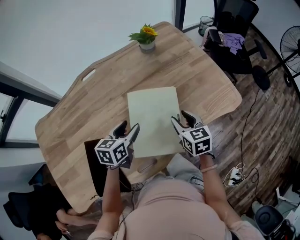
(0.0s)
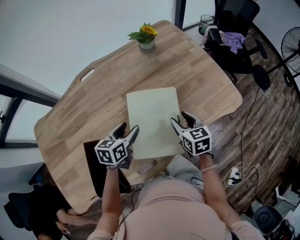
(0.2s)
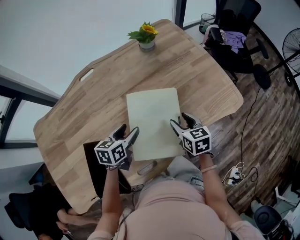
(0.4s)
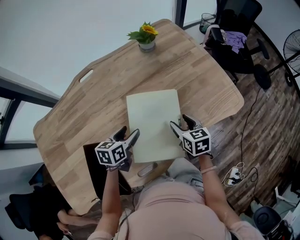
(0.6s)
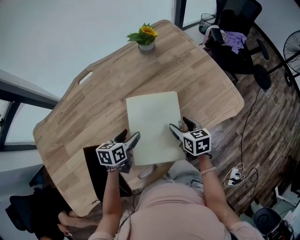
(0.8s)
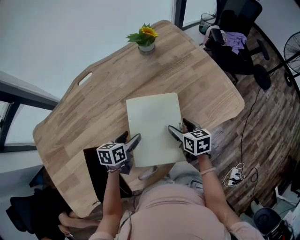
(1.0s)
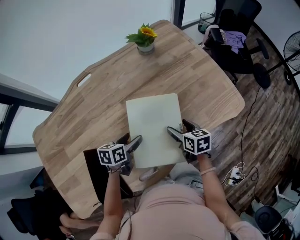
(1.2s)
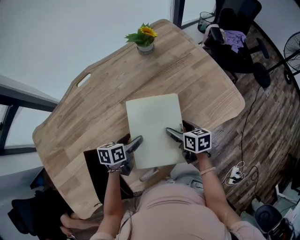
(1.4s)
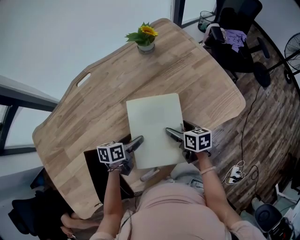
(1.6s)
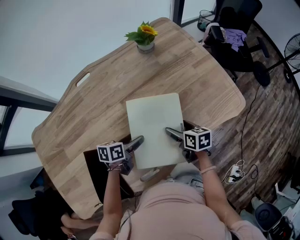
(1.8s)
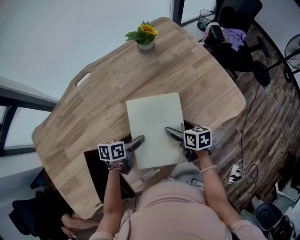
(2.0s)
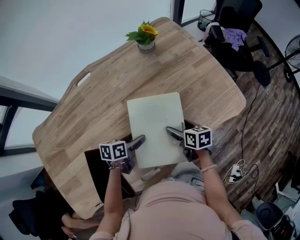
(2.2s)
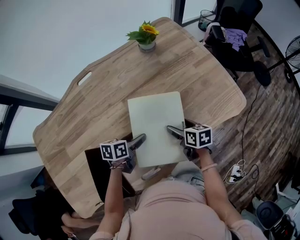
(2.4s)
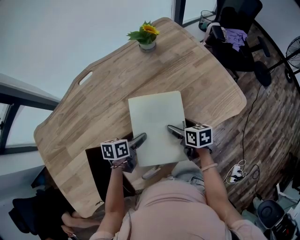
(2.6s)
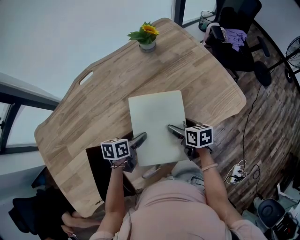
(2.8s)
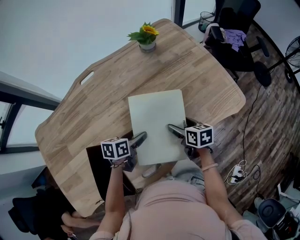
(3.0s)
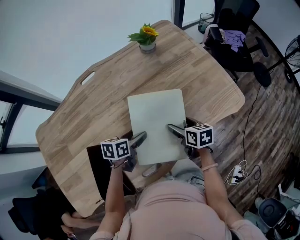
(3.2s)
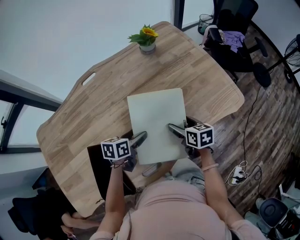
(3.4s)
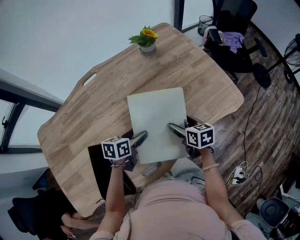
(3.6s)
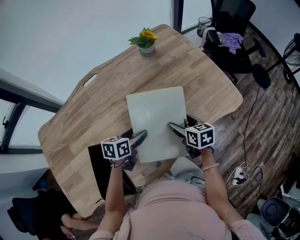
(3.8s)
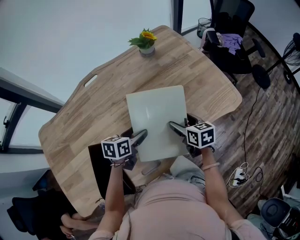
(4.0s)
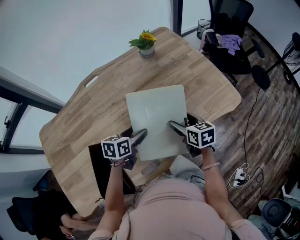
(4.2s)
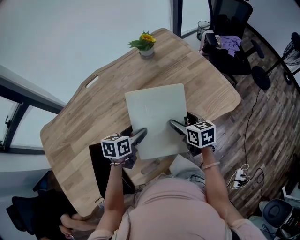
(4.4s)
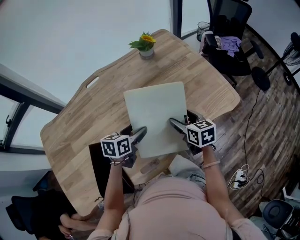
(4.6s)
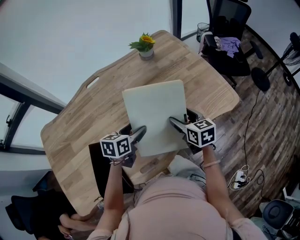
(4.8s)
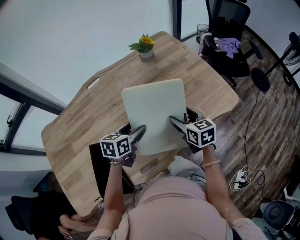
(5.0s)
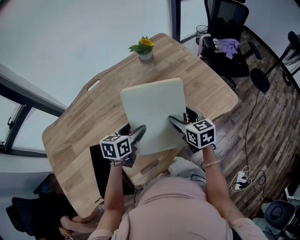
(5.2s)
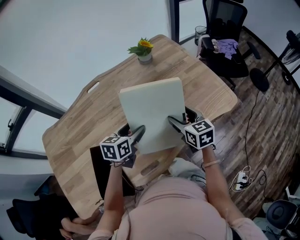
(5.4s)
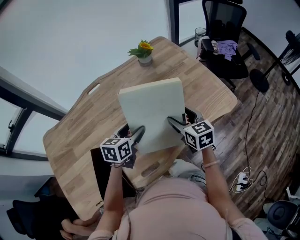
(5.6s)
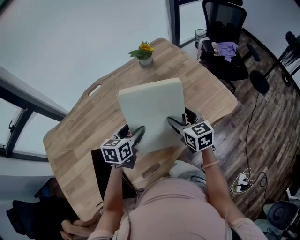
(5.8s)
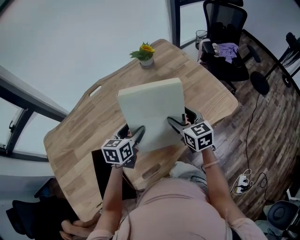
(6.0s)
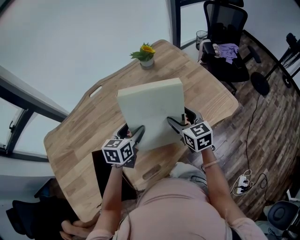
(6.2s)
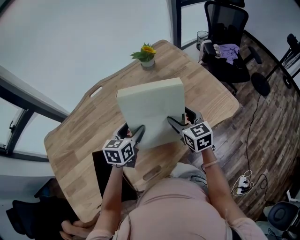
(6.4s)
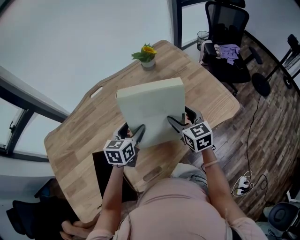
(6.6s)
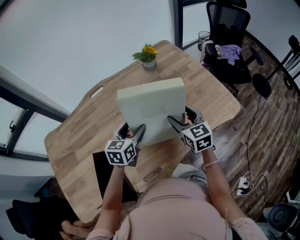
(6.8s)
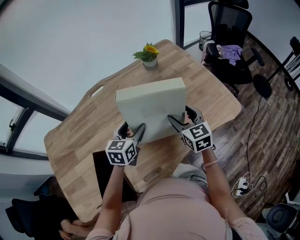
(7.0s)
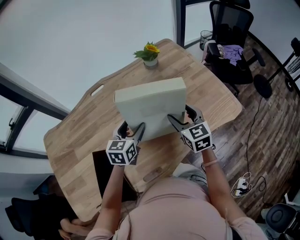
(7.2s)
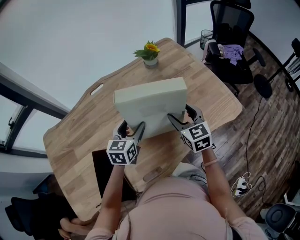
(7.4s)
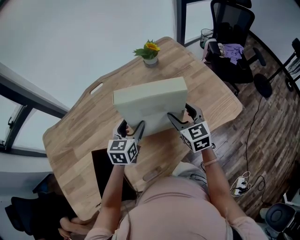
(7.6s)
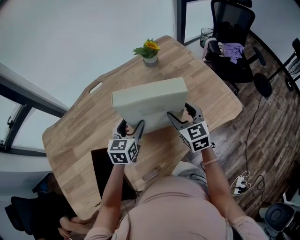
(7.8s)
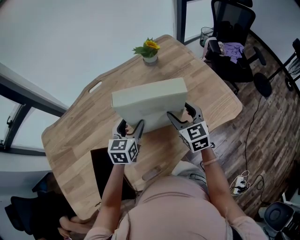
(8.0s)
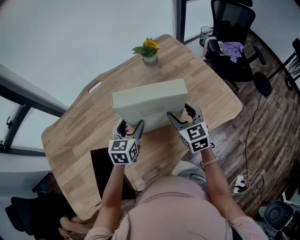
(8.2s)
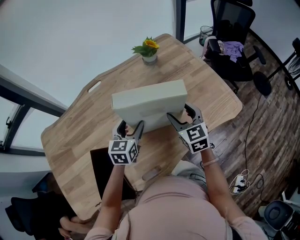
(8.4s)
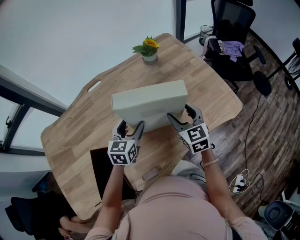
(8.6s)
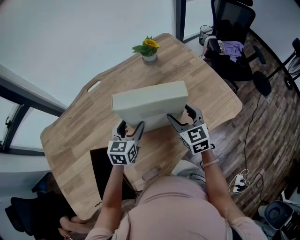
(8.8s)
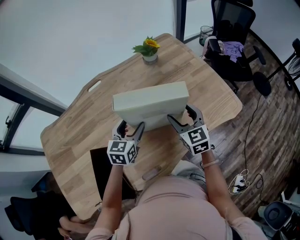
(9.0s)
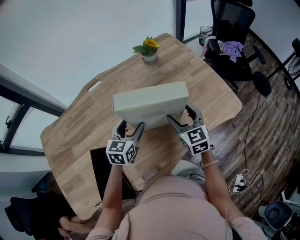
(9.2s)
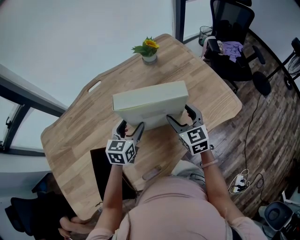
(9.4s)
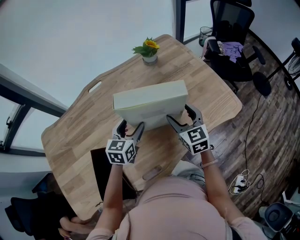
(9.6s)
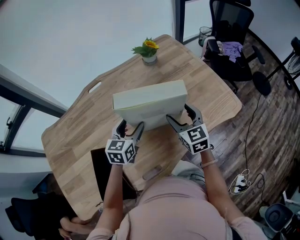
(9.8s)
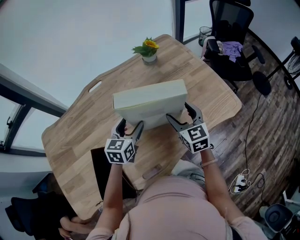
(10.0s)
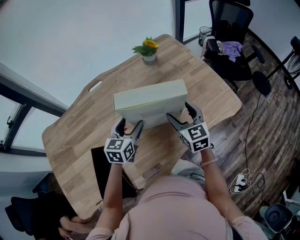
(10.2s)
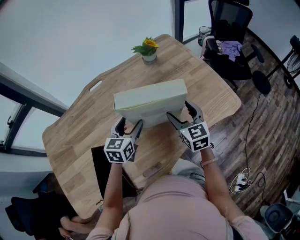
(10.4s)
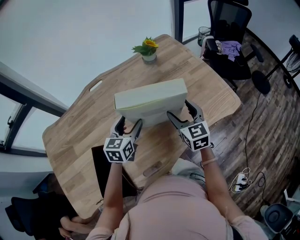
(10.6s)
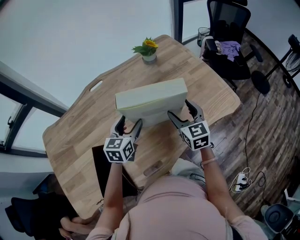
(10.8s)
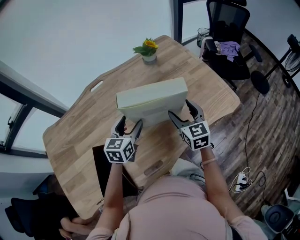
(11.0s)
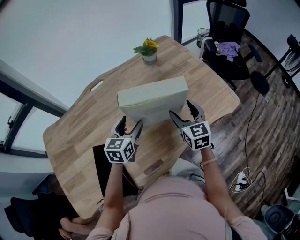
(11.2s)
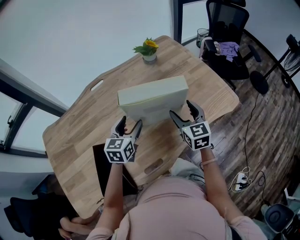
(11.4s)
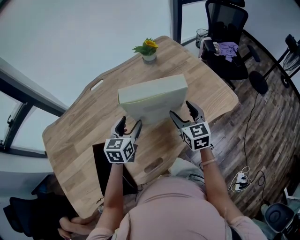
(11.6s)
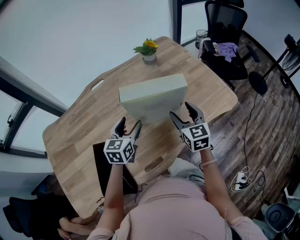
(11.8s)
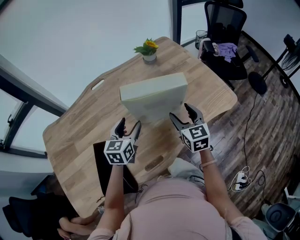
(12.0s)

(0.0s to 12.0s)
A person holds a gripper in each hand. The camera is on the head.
0.0s - 1.6s: Both grippers move downward, approximately 10 cm. The right gripper turns by some 30 degrees, and opens its fingers, while the left gripper changes its angle by roughly 30 degrees.
1.6s - 3.0s: The grippers stay close to where they were, moving slightly.
3.0s - 4.4s: The grippers both shift upward by roughly 5 cm.
4.4s - 6.0s: Both grippers travel together upward, roughly 5 cm.
6.0s - 10.4s: There are only small adjustments of the grippers.
10.4s - 12.0s: The left gripper shifts by about 5 cm.

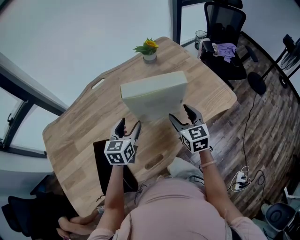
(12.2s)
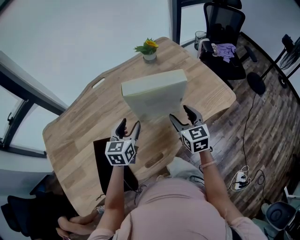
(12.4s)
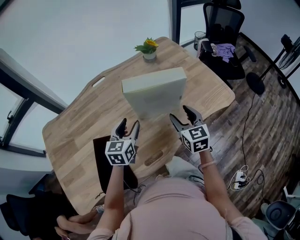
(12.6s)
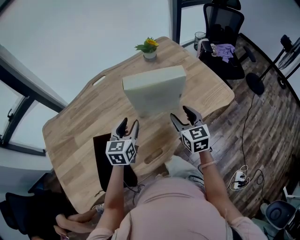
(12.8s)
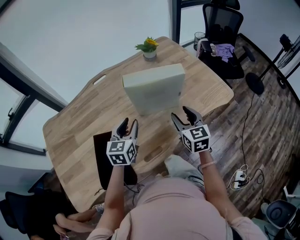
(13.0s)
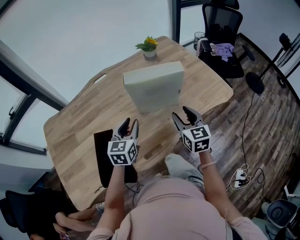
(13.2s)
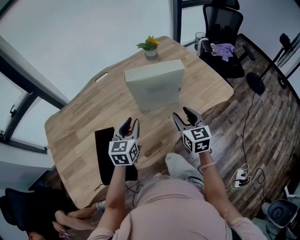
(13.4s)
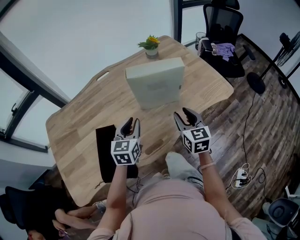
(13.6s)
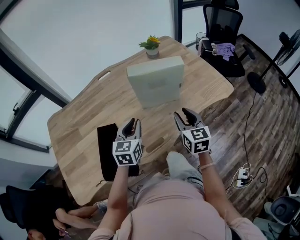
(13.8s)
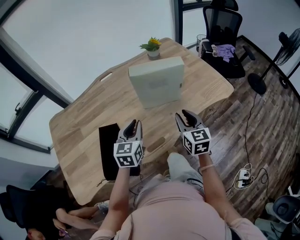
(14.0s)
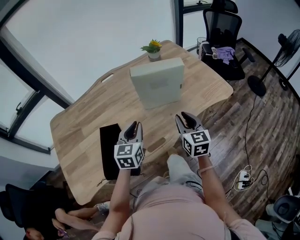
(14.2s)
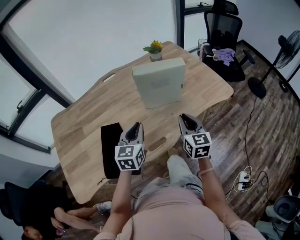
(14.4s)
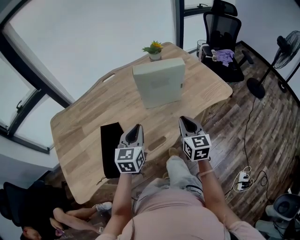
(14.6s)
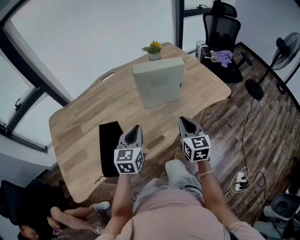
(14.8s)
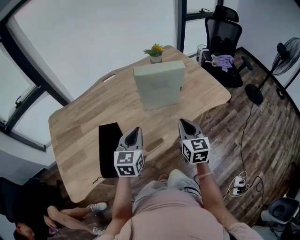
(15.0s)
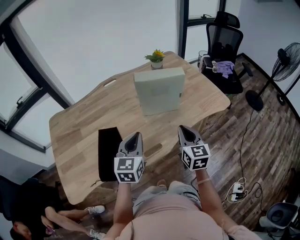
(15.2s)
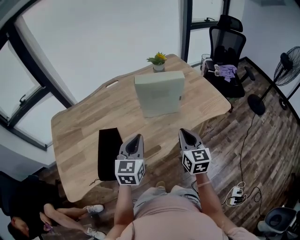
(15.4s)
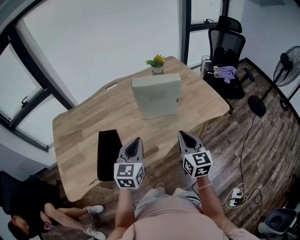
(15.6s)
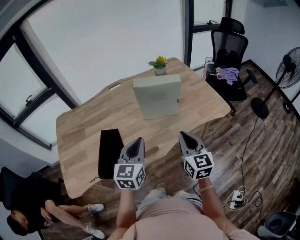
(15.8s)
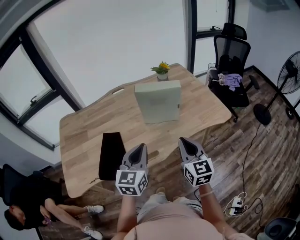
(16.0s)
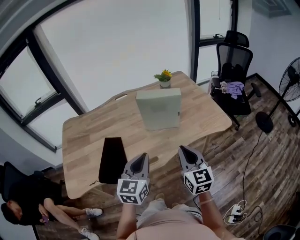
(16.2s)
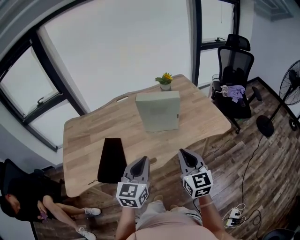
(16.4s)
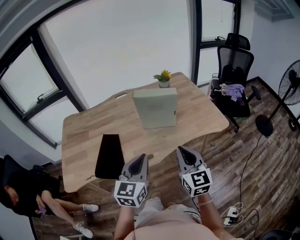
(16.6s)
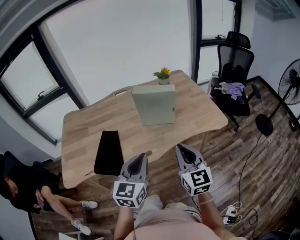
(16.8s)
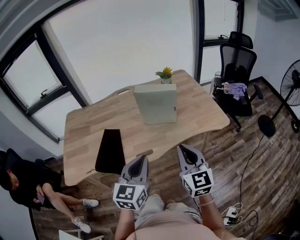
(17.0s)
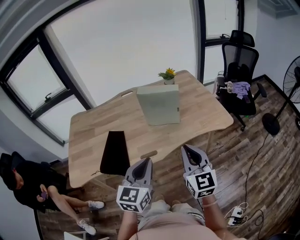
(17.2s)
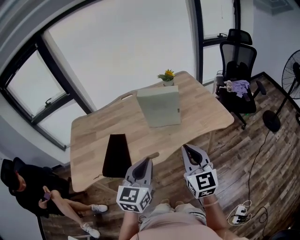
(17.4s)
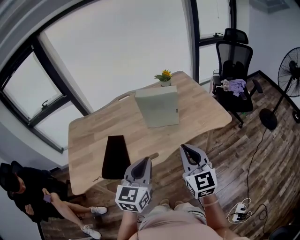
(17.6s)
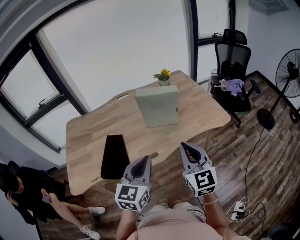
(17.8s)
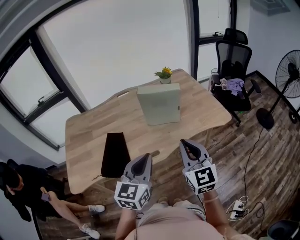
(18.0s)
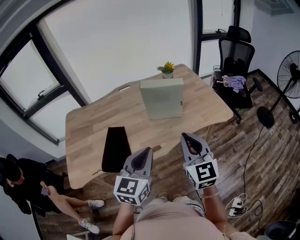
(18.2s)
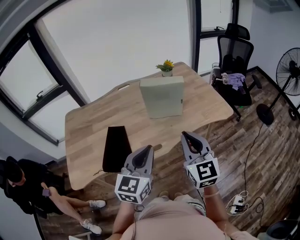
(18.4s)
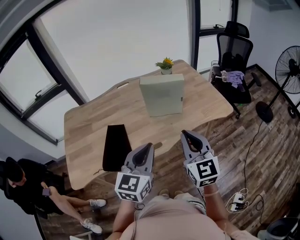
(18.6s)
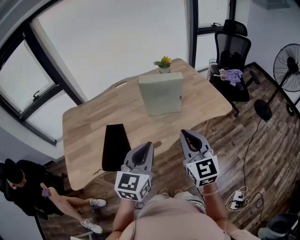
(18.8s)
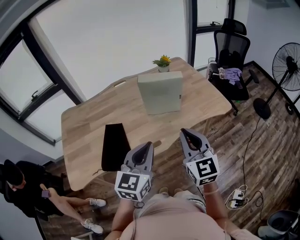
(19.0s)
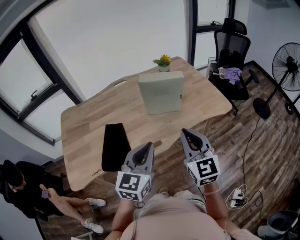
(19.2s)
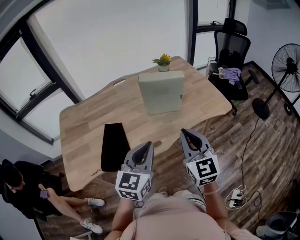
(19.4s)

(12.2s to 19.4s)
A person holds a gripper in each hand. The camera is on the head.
12.2s - 13.6s: Both grippers move backward, approximately 10 cm. The left gripper closes up.
13.6s - 15.0s: Both grippers travel together backward, about 10 cm. The right gripper closes.
15.0s - 16.6s: The left gripper is displaced backward, to the right and upward by some 20 cm; the right gripper shifts roughly 15 cm upward, backward and to the right.
16.6s - 18.0s: The right gripper shifts by roughly 5 cm.
18.0s - 19.4s: The grippers stay close to where they were, moving slightly.

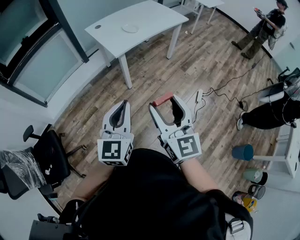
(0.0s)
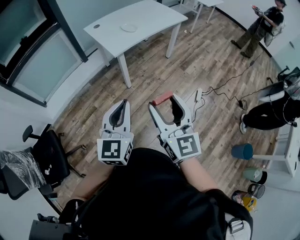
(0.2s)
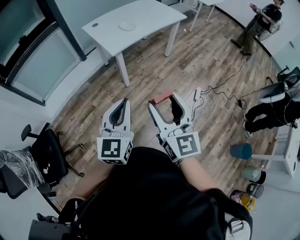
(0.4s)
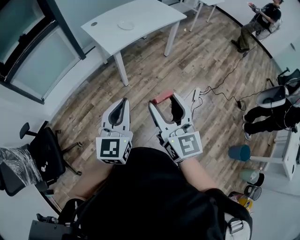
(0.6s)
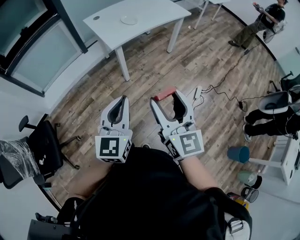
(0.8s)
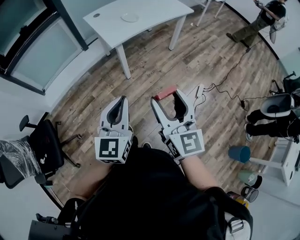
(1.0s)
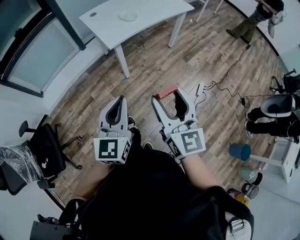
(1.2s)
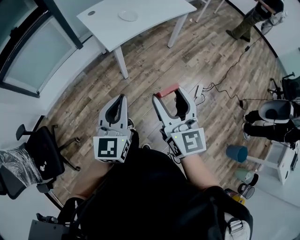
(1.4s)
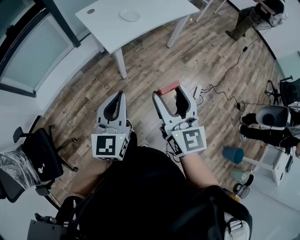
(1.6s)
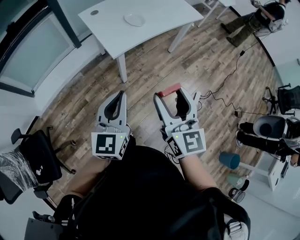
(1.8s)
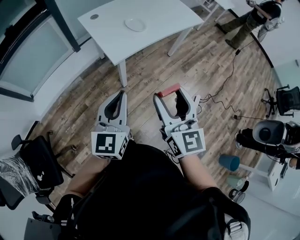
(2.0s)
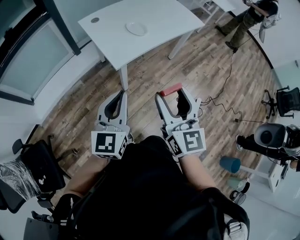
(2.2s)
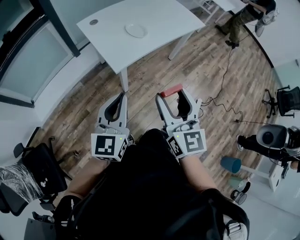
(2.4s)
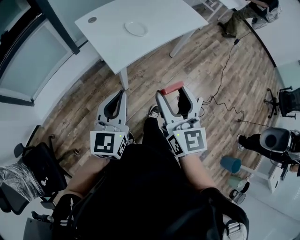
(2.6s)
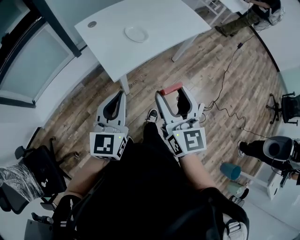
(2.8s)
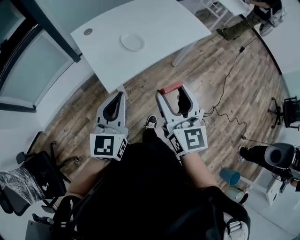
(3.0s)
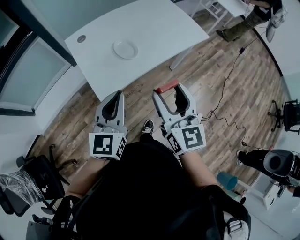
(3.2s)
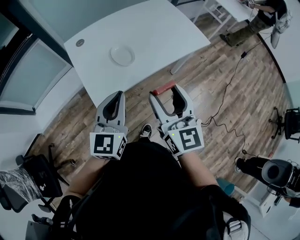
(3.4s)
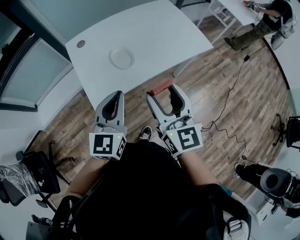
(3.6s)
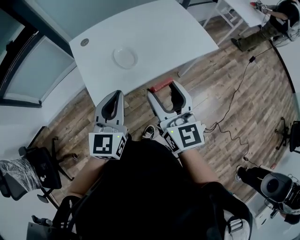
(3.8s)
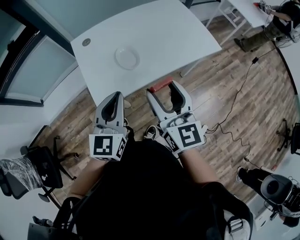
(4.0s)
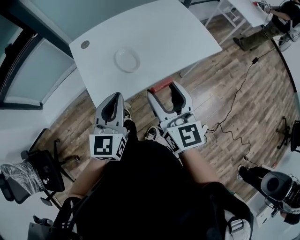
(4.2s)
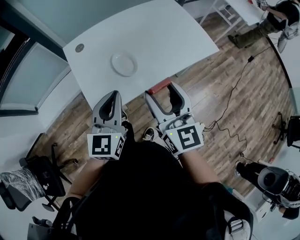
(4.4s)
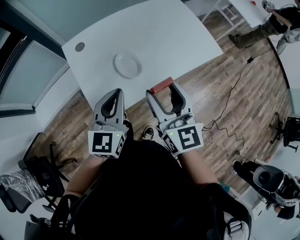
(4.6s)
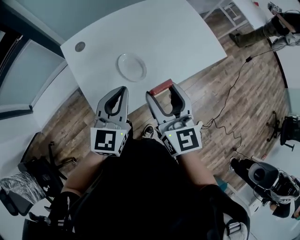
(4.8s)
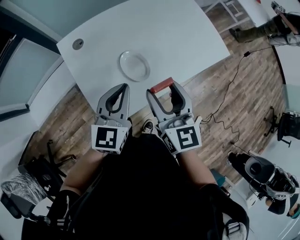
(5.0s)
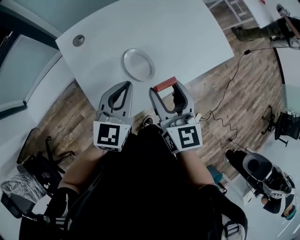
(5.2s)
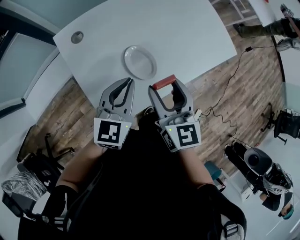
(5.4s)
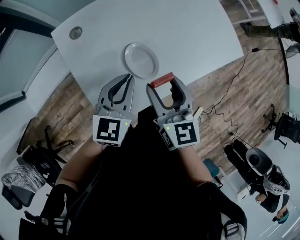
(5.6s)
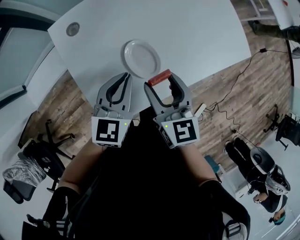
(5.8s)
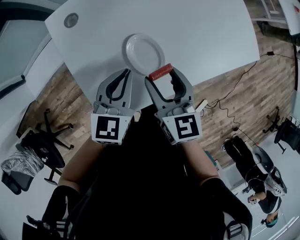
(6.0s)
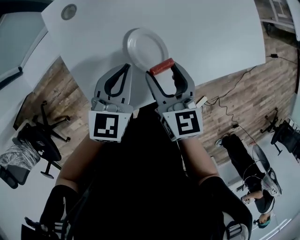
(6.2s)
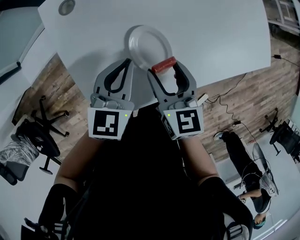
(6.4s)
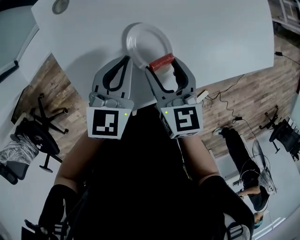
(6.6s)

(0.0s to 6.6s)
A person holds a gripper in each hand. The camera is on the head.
0.0s - 1.6s: Both grippers move forward, about 15 cm.
1.6s - 3.2s: The grippers both shift forward by roughly 30 cm.
3.2s - 5.0s: The two grippers go roughly 20 cm forward.
5.0s - 6.6s: Both grippers travel together downward and forward, some 15 cm. The right gripper turns by some 30 degrees. Meanwhile the left gripper rotates about 20 degrees.
